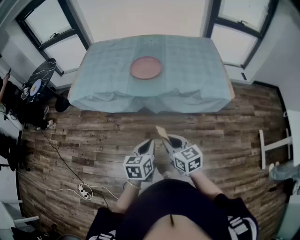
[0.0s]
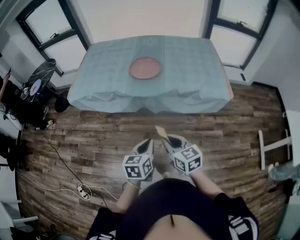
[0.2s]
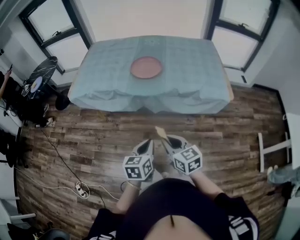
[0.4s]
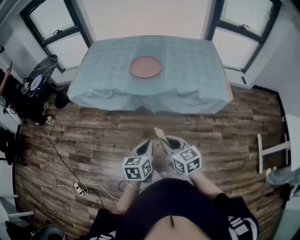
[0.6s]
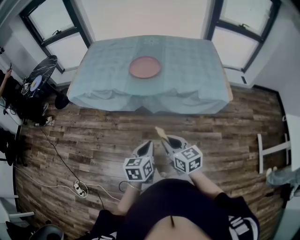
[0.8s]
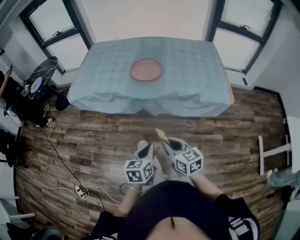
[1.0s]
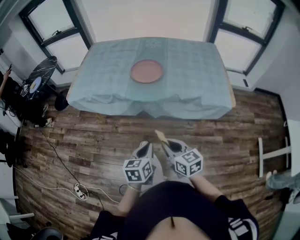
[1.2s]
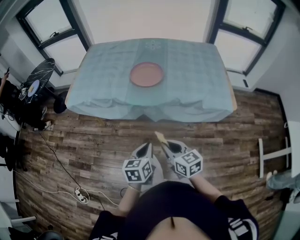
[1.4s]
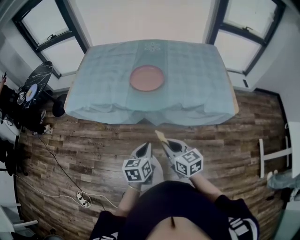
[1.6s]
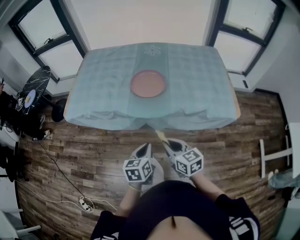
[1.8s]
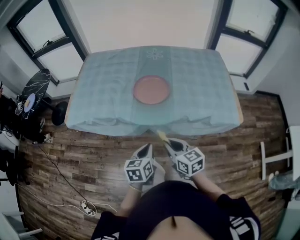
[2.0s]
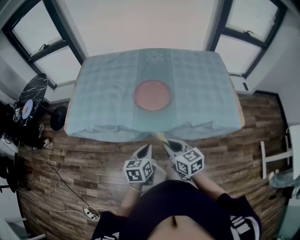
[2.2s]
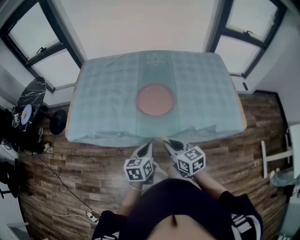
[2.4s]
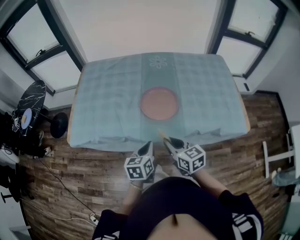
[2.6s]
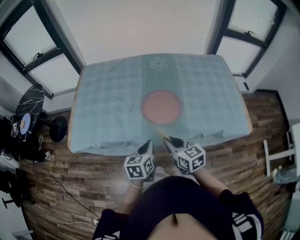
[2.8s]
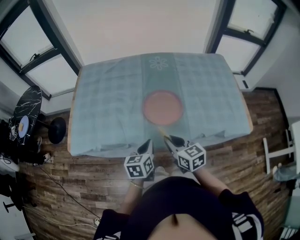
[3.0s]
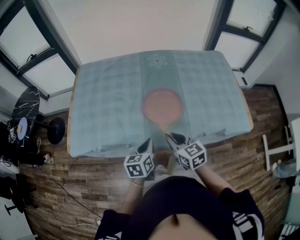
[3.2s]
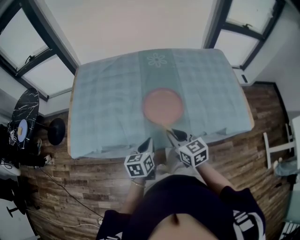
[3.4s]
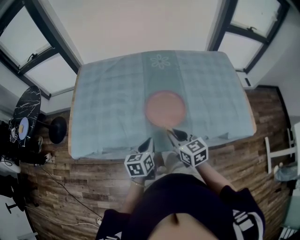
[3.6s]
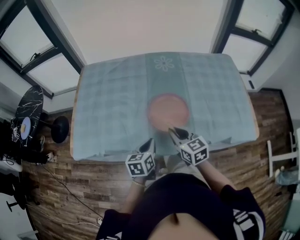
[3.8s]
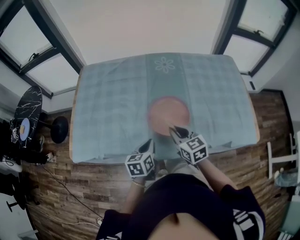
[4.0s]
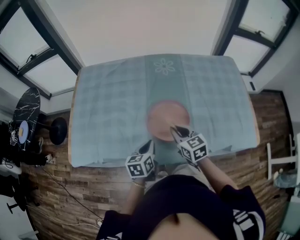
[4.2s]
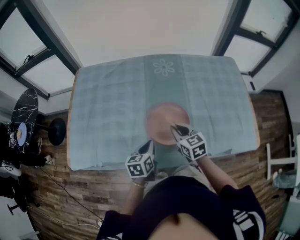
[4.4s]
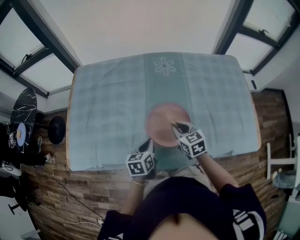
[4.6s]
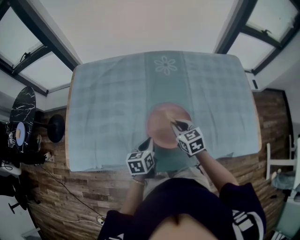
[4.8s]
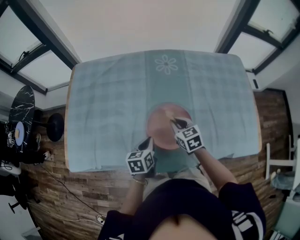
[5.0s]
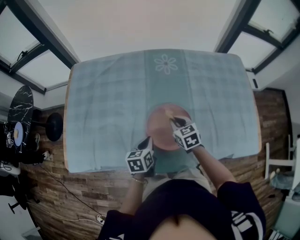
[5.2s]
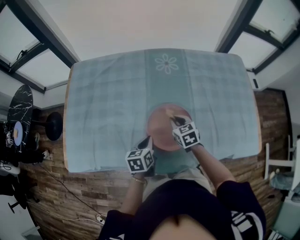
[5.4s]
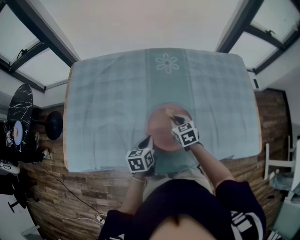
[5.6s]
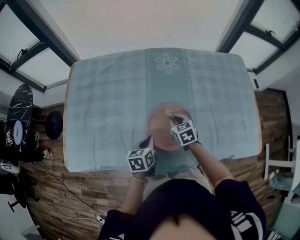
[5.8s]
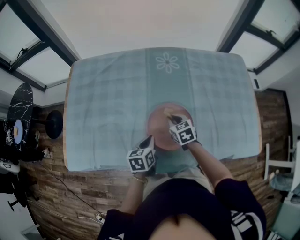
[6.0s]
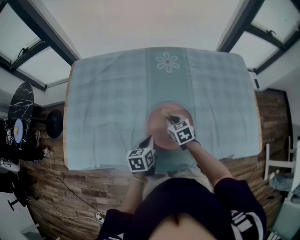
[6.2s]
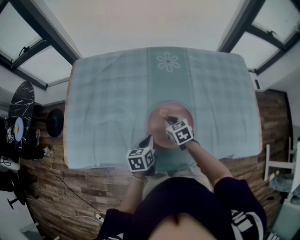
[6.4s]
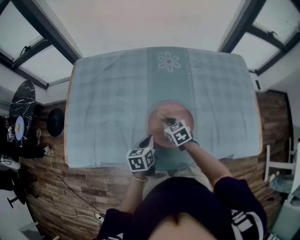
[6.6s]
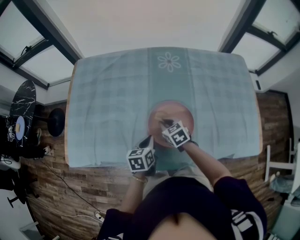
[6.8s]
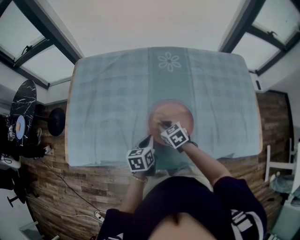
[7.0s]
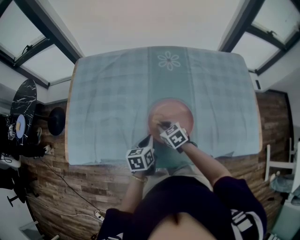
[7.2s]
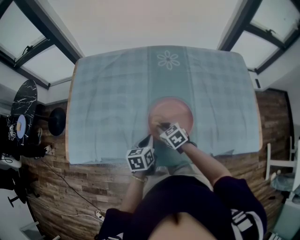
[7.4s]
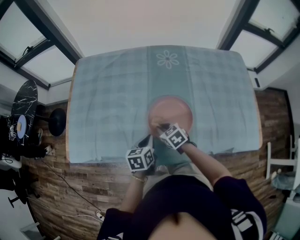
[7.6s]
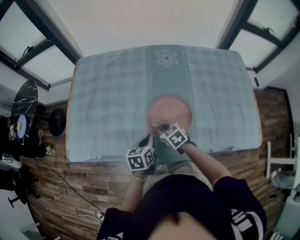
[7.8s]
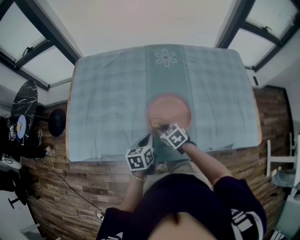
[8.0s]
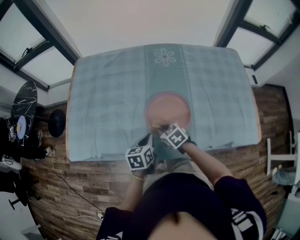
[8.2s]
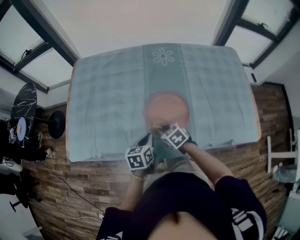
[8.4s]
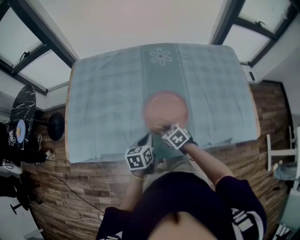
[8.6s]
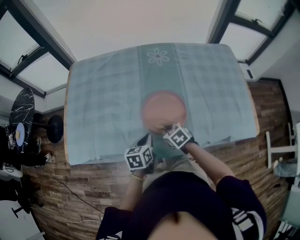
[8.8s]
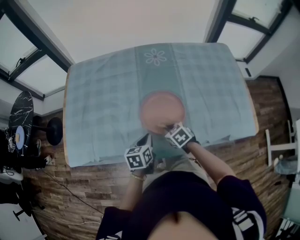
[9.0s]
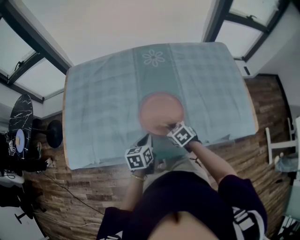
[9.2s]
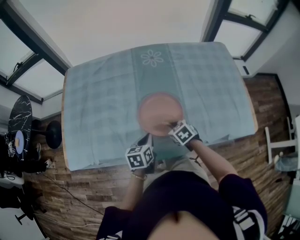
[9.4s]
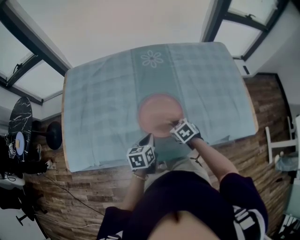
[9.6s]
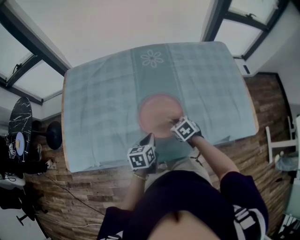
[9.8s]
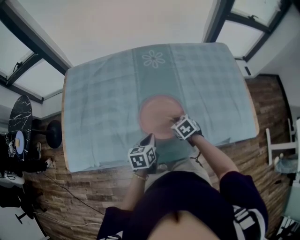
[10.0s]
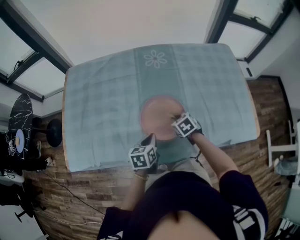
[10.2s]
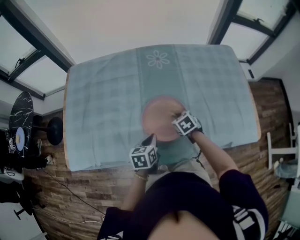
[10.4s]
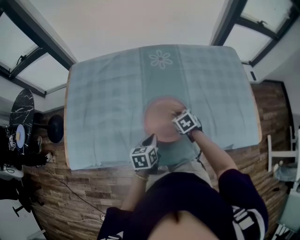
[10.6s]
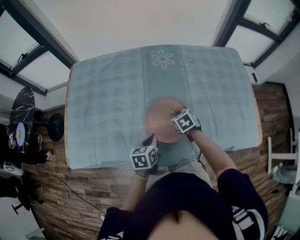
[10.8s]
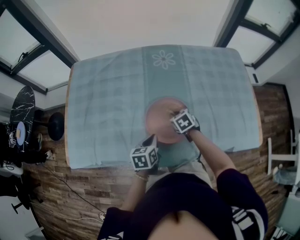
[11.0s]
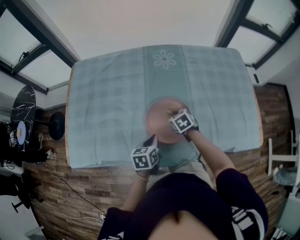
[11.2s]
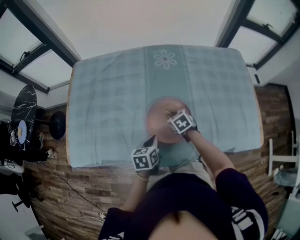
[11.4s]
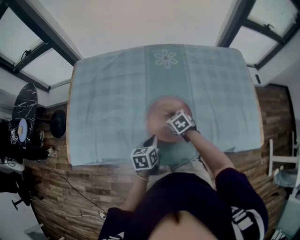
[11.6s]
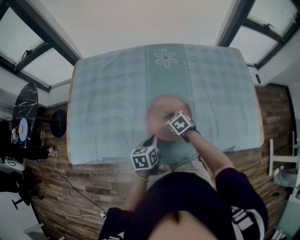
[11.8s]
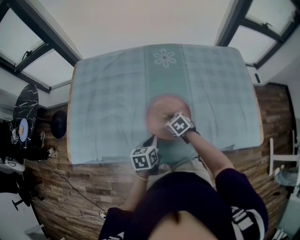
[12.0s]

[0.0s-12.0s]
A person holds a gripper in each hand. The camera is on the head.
0.0s to 1.6s: The grippers both shift forward by some 10 cm.
1.6s to 3.0s: Both grippers move forward, some 30 cm.
3.0s to 4.4s: Both grippers travel together forward, about 15 cm.
4.4s to 6.0s: The left gripper shifts some 5 cm forward. Meanwhile the right gripper moves downward and forward, some 15 cm.
6.0s to 7.6s: The right gripper moves backward and to the left, approximately 10 cm.
7.6s to 9.0s: The right gripper goes some 10 cm backward and to the right.
9.0s to 10.4s: The right gripper moves forward and to the right, approximately 10 cm.
10.4s to 12.0s: The right gripper goes some 5 cm to the left.

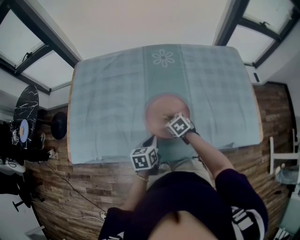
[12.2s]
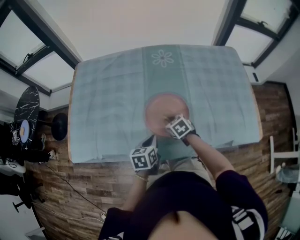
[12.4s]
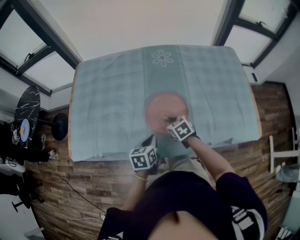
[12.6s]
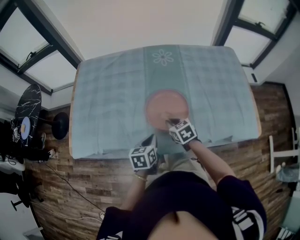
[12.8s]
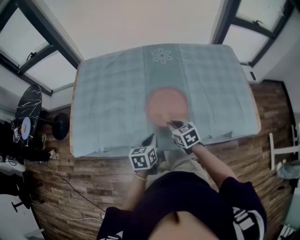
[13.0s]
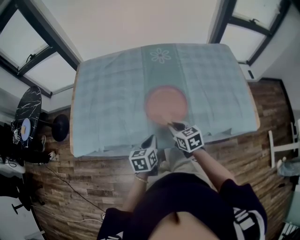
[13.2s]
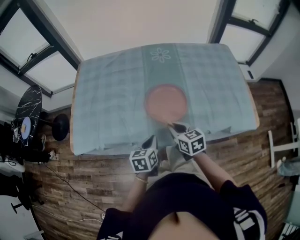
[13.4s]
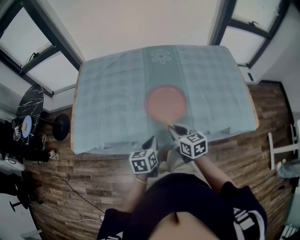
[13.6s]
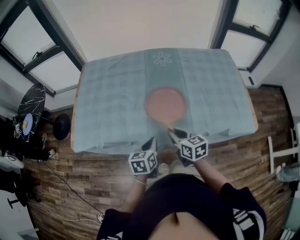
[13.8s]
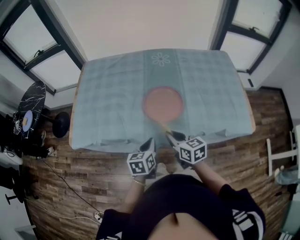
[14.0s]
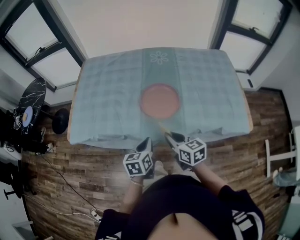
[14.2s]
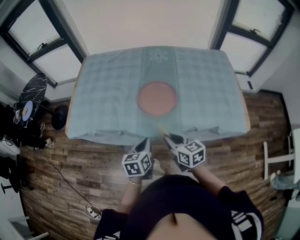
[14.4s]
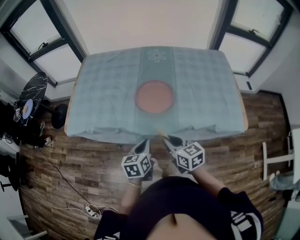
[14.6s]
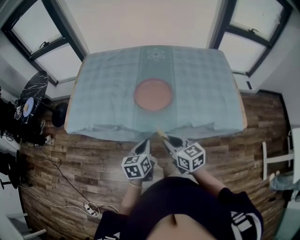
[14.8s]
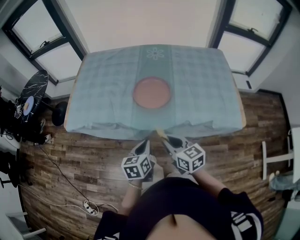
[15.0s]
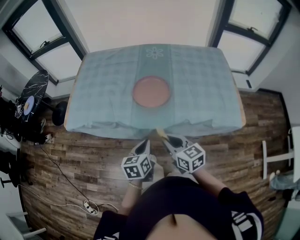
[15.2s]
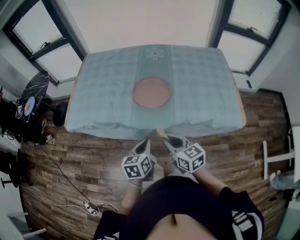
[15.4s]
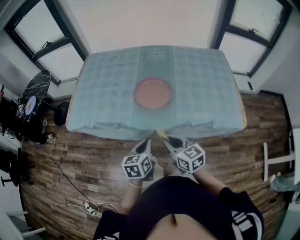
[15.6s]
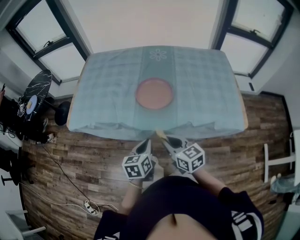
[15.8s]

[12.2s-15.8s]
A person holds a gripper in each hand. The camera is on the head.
12.2s to 14.0s: The left gripper shifts some 15 cm backward and upward; the right gripper heads backward and upward, covering approximately 25 cm, and points its fingers approximately 30 degrees further upward.
14.0s to 15.8s: Both grippers travel together backward, some 10 cm.

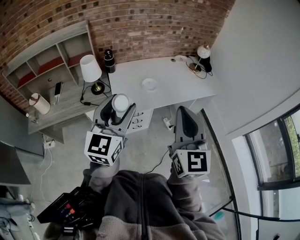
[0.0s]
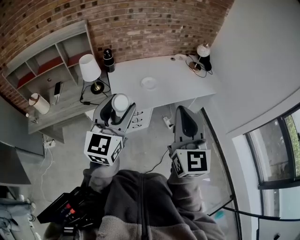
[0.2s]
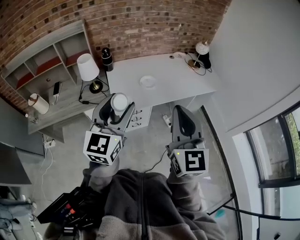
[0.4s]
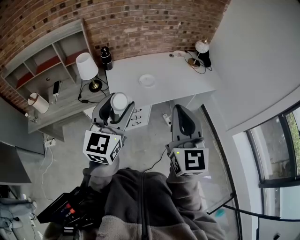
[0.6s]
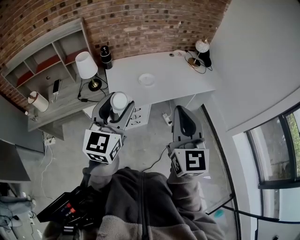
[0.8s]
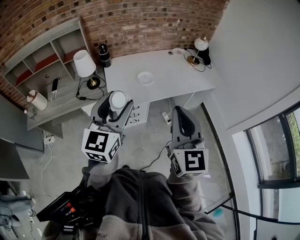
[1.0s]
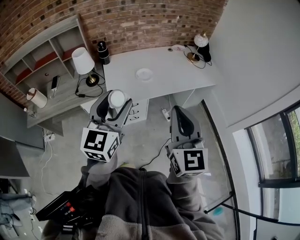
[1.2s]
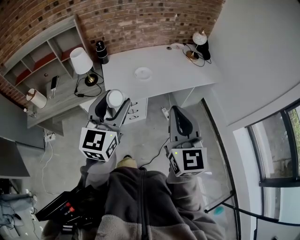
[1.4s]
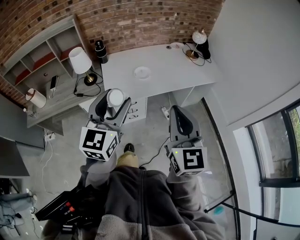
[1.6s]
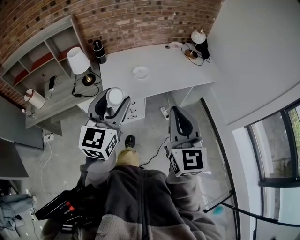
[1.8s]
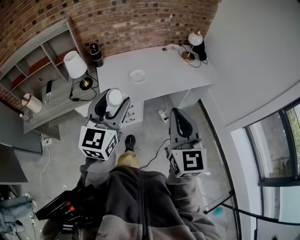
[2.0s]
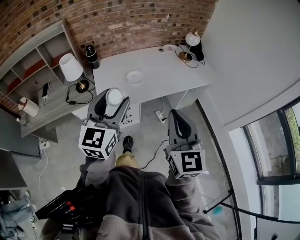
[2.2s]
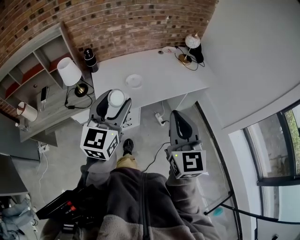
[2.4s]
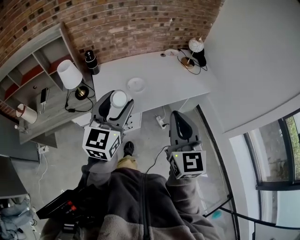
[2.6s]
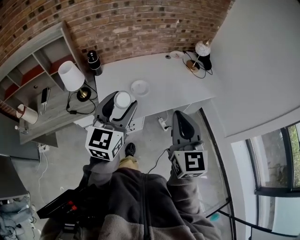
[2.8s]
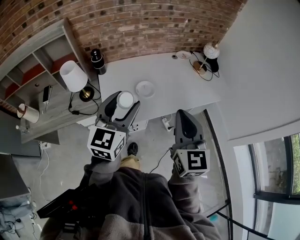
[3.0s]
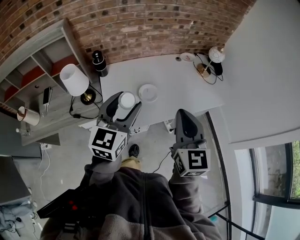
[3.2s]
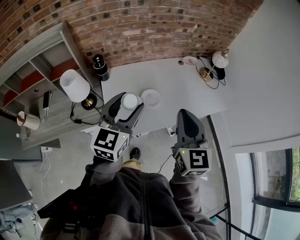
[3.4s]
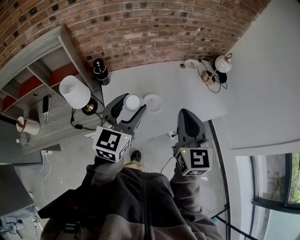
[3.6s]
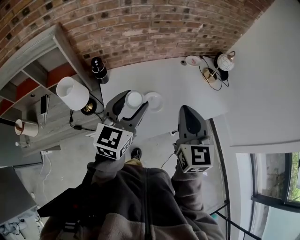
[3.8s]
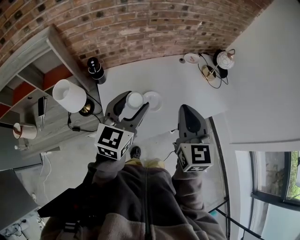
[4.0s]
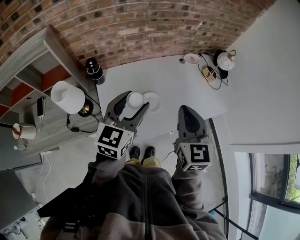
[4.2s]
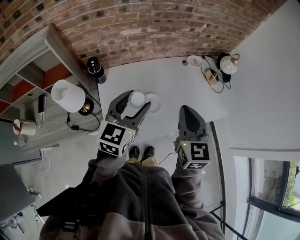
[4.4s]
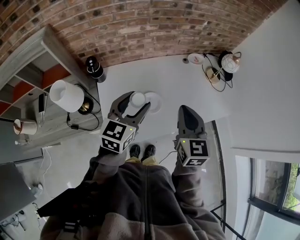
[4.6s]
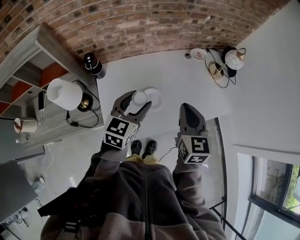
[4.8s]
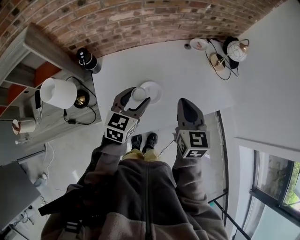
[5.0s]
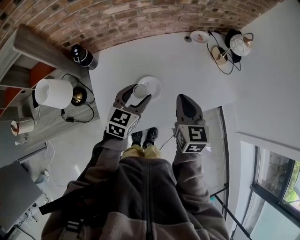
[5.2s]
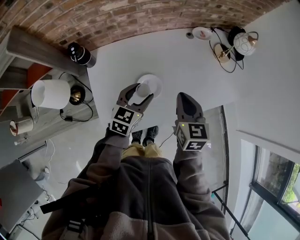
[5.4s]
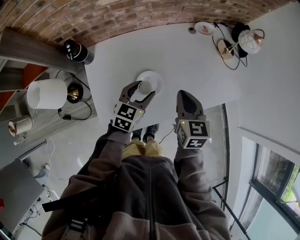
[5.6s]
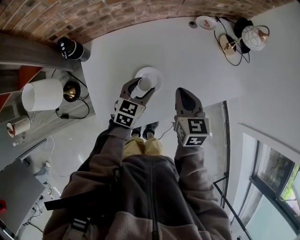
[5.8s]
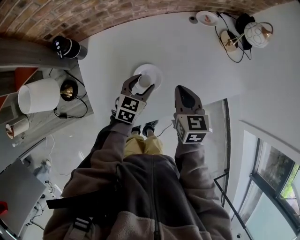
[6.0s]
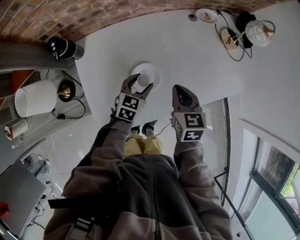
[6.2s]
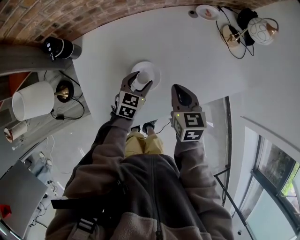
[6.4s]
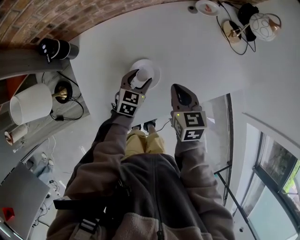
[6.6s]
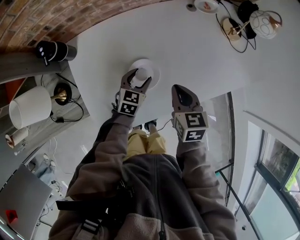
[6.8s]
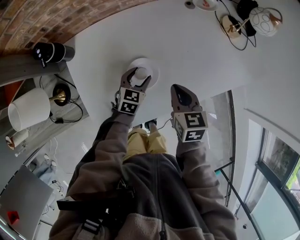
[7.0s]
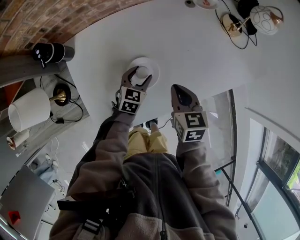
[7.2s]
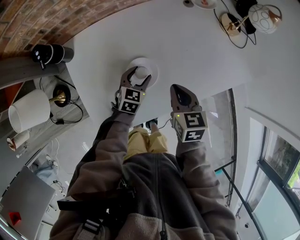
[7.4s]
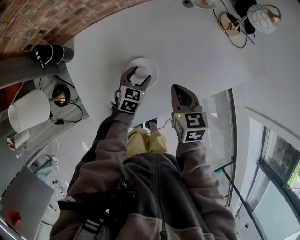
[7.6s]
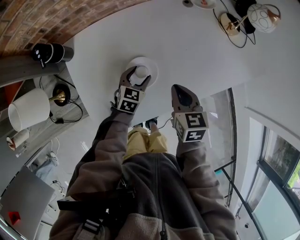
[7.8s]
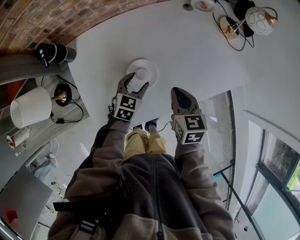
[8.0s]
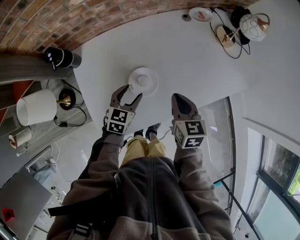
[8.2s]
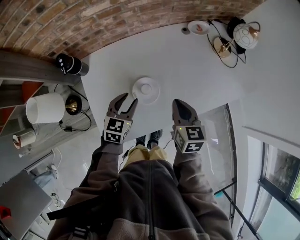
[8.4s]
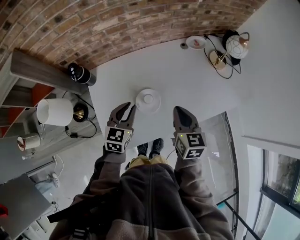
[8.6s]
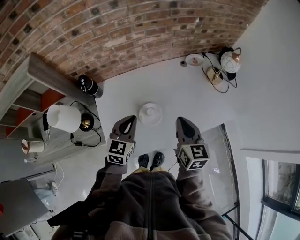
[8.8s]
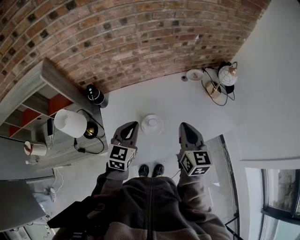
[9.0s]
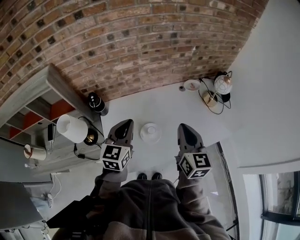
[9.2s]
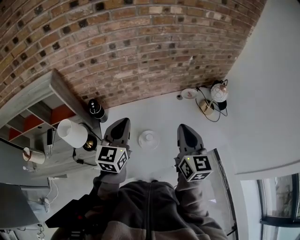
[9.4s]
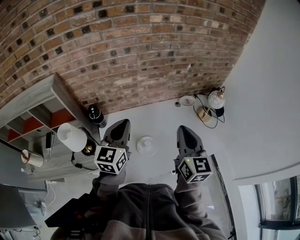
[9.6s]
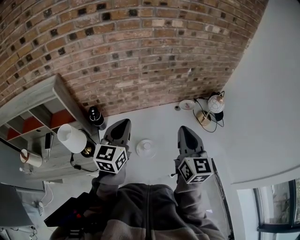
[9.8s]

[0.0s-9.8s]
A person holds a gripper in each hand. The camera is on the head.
0.0s to 1.4s: The right gripper is displaced to the right and downward by some 10 cm. Meanwhile the left gripper shifts some 10 cm to the right.
1.4s to 2.8s: Both grippers move forward, approximately 15 cm.
2.8s to 4.2s: Both grippers move forward, some 25 cm.
4.2s to 5.6s: The left gripper goes approximately 25 cm downward, and turns by roughly 20 degrees. Meanwhile the right gripper shifts approximately 20 cm downward and forward, and changes its angle by about 20 degrees.
5.6s to 7.0s: The grippers both shift downward by approximately 15 cm.
7.0s to 8.4s: The right gripper is displaced upward by some 5 cm. The left gripper heads upward and backward, covering some 15 cm.
8.4s to 9.8s: The two grippers go some 30 cm upward. The right gripper angles its fingers upward, by roughly 30 degrees. Meanwhile the left gripper changes its angle by some 30 degrees, and closes up.
